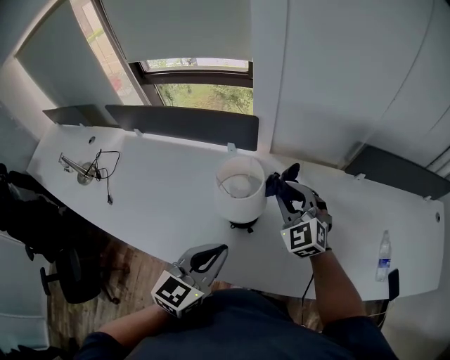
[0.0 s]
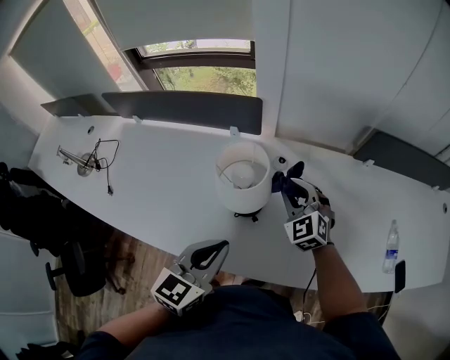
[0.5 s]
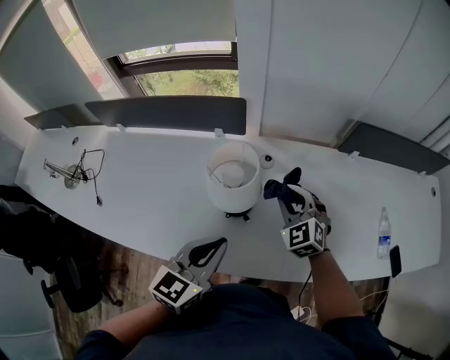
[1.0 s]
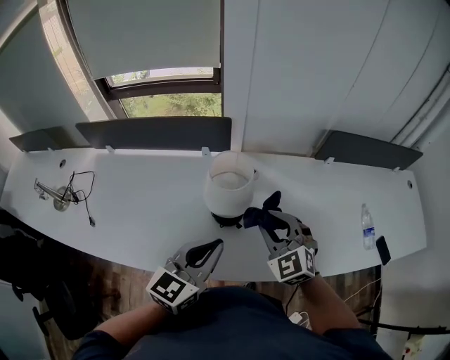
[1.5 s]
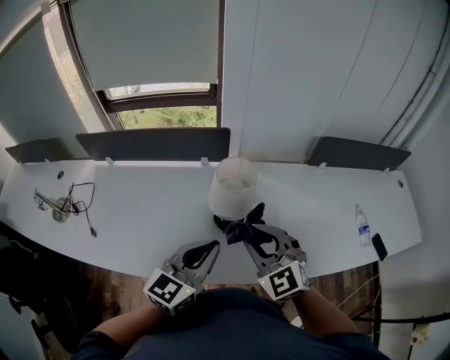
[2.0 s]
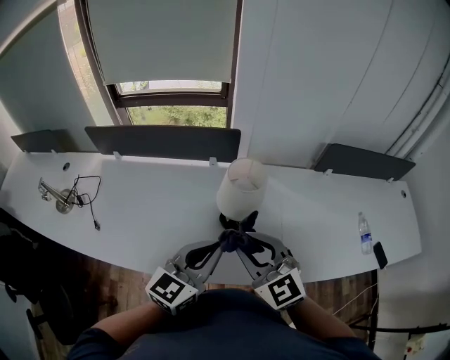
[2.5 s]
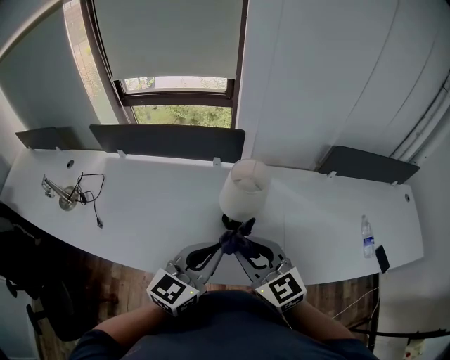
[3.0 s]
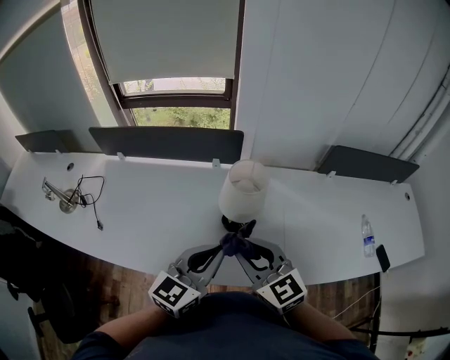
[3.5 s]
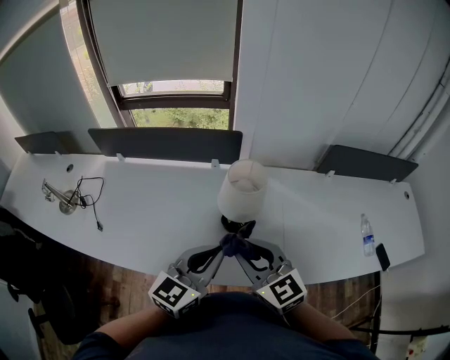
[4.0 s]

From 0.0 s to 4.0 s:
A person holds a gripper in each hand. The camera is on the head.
From 0.0 s to 2.0 s: The left gripper heads to the left, covering approximately 5 cm. Meanwhile the right gripper heads backward and to the left, covering approximately 20 cm.
From 2.0 s to 4.0 s: The right gripper moves some 5 cm, and swivels approximately 20 degrees.

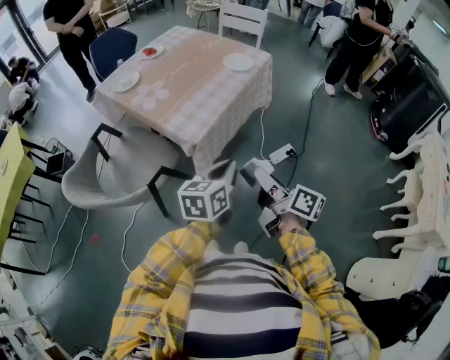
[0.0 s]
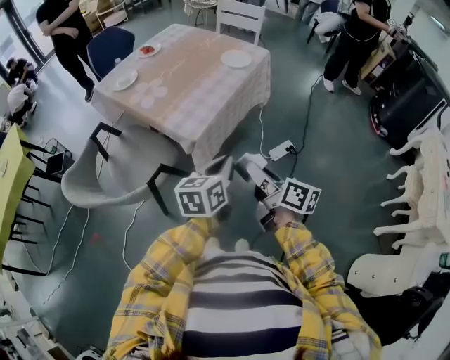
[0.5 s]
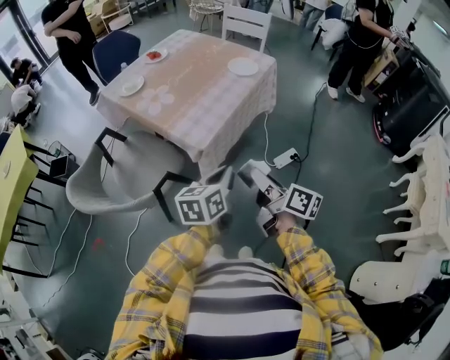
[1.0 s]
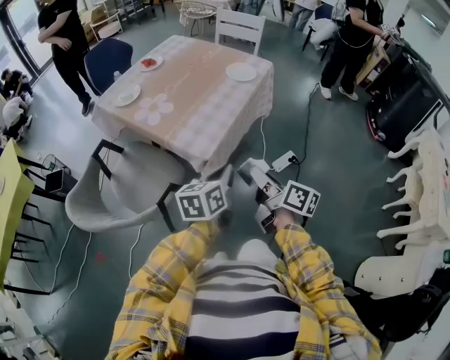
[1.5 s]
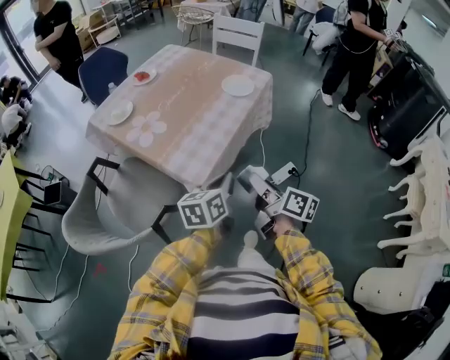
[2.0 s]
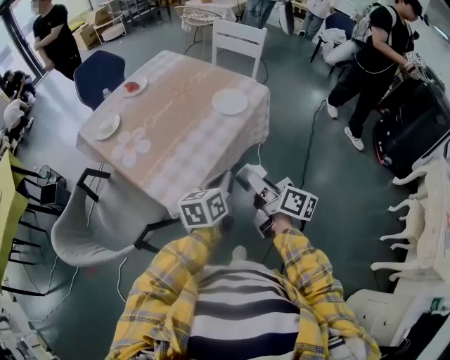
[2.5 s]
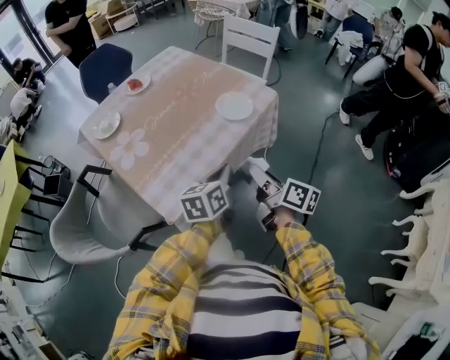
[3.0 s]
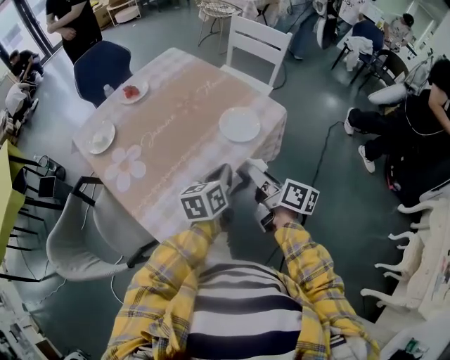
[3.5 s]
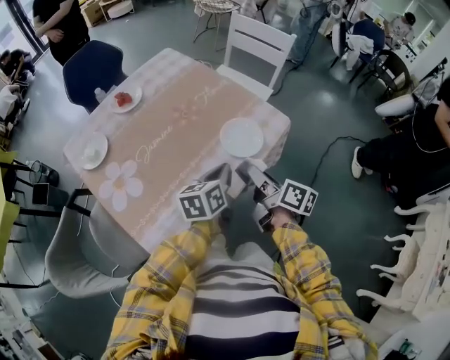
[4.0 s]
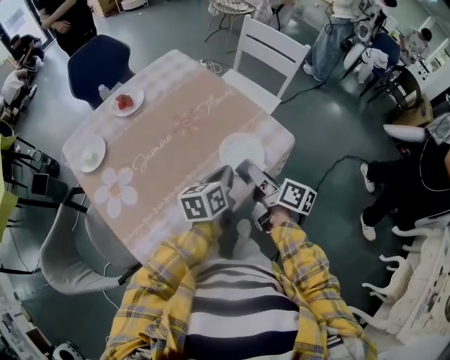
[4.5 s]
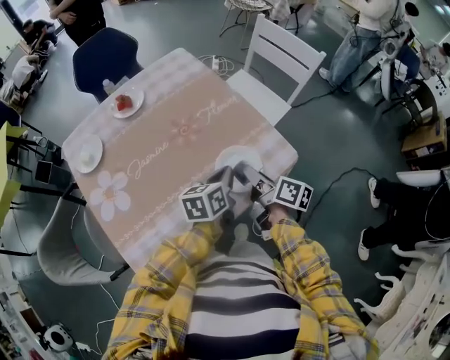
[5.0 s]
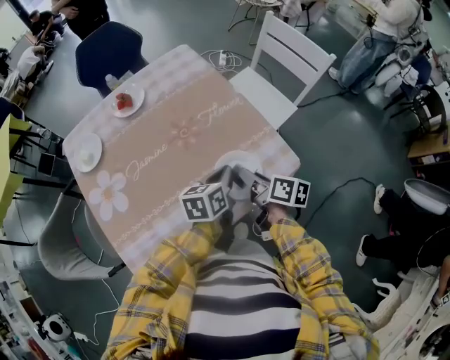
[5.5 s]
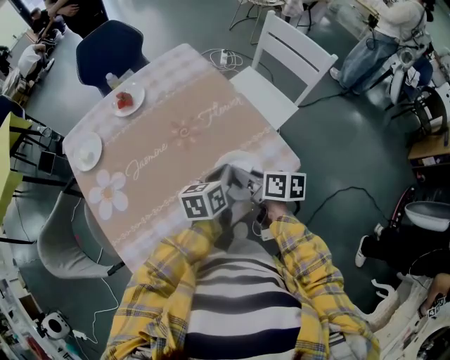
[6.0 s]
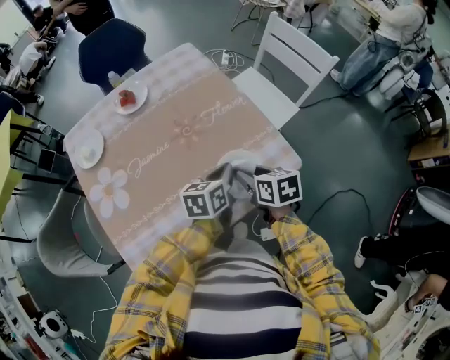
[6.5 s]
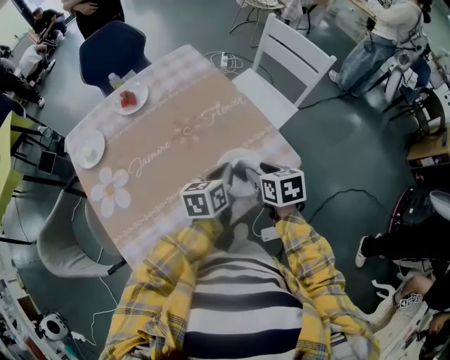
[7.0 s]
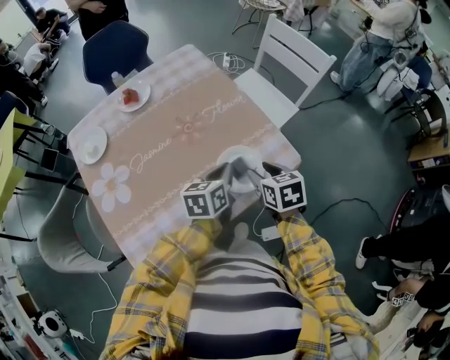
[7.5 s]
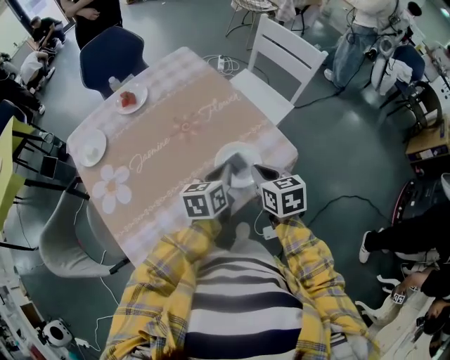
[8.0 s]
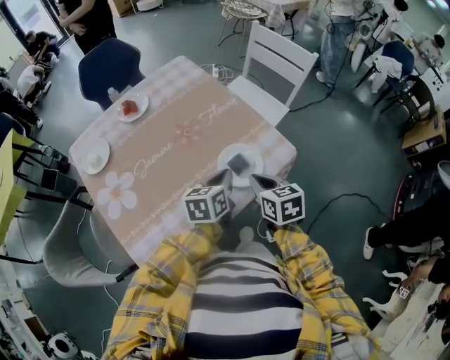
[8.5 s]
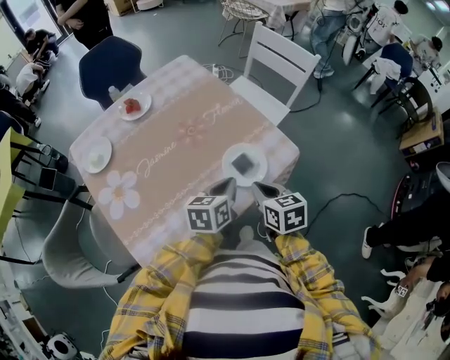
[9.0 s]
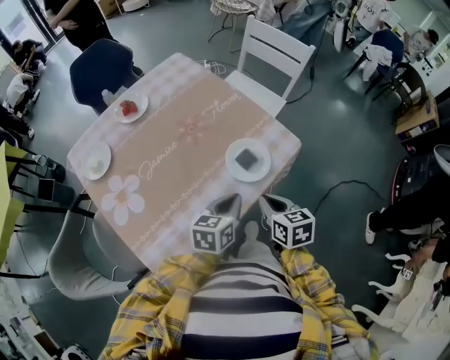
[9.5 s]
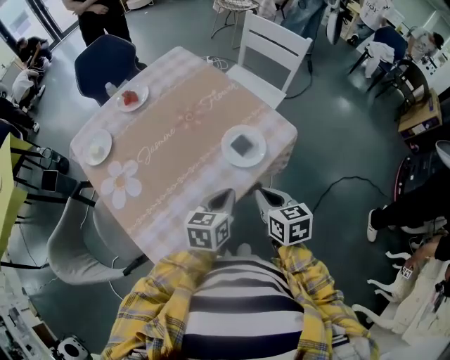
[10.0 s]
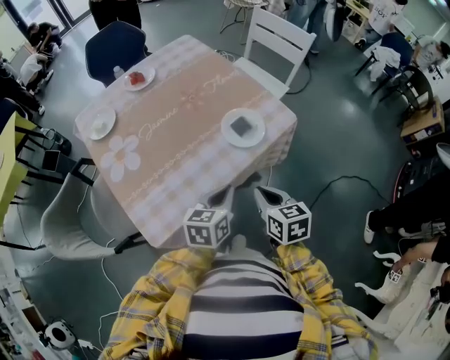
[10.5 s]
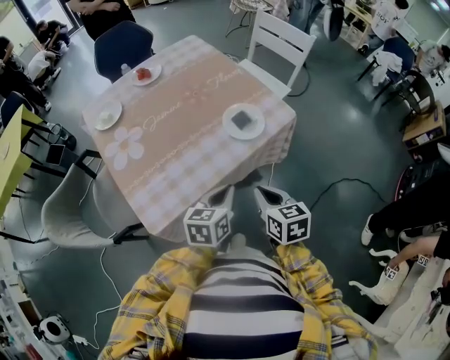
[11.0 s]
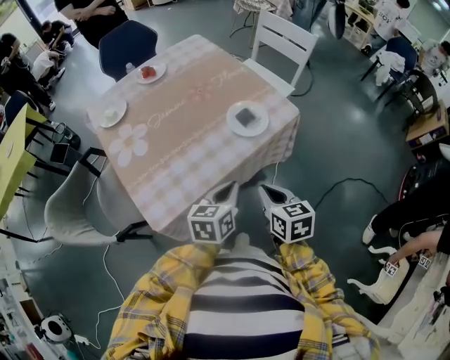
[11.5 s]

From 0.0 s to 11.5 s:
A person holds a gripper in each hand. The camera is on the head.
From 0.0 s to 2.0 s: The two grippers go some 15 cm forward.
From 2.0 s to 4.0 s: The two grippers go about 35 cm forward.
From 4.0 s to 6.0 s: The left gripper travels forward and to the right by approximately 15 cm. The right gripper shifts about 15 cm forward, and swivels approximately 30 degrees.
From 6.0 s to 7.5 s: The right gripper turns by about 40 degrees, and opens up.
From 7.5 s to 9.5 s: Both grippers move backward, approximately 15 cm. The right gripper closes.
From 9.5 s to 11.5 s: The grippers both shift backward by roughly 10 cm.

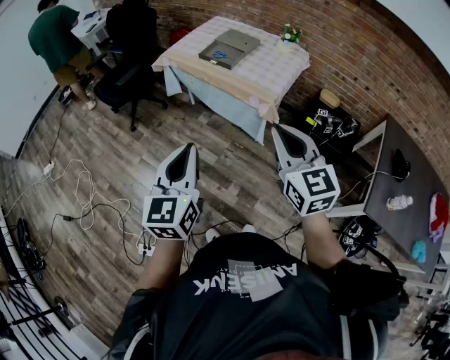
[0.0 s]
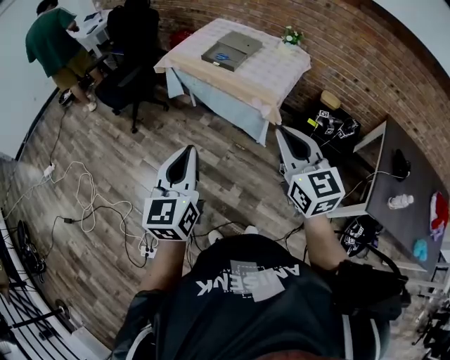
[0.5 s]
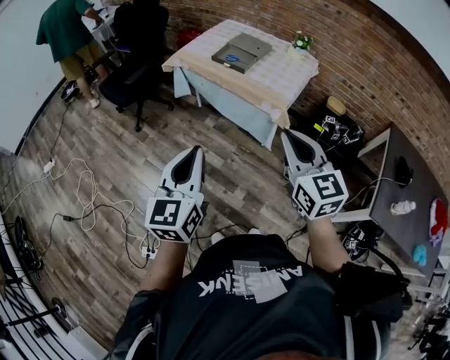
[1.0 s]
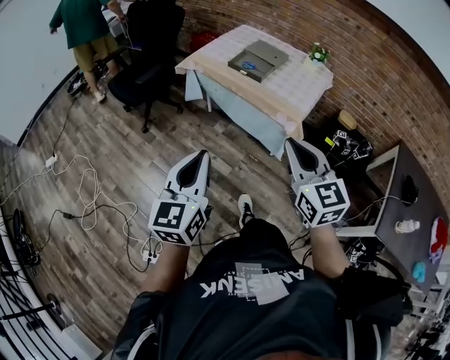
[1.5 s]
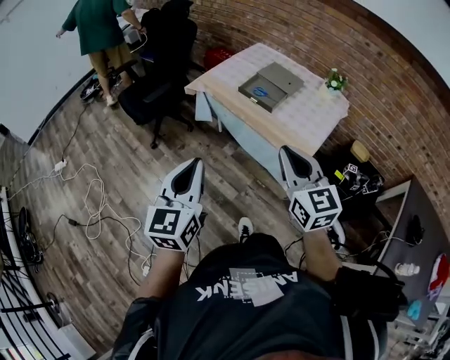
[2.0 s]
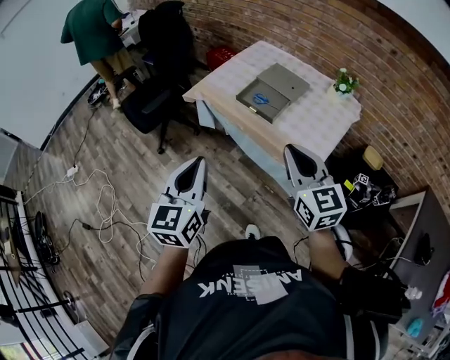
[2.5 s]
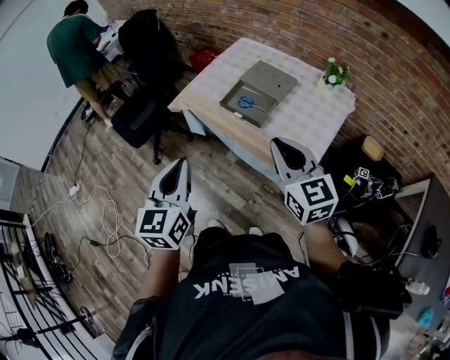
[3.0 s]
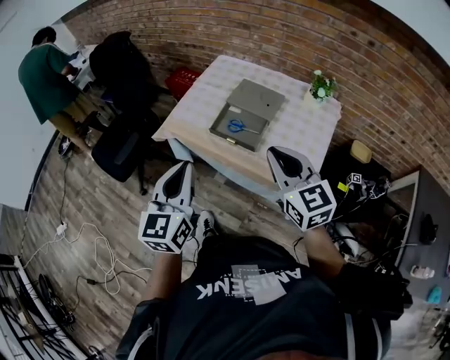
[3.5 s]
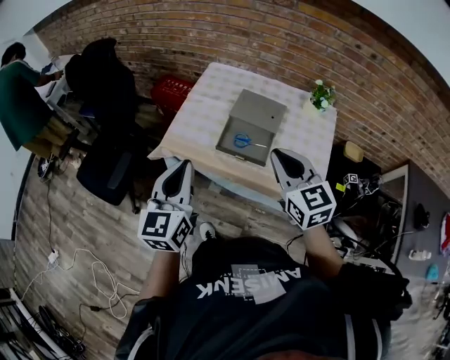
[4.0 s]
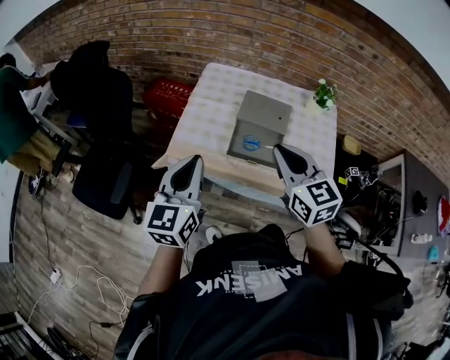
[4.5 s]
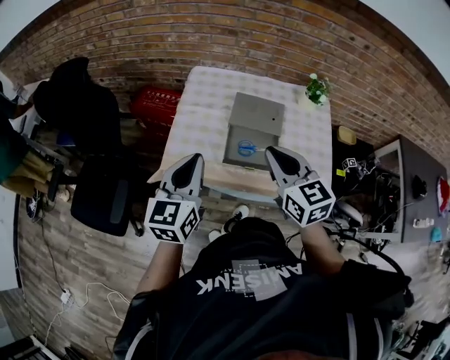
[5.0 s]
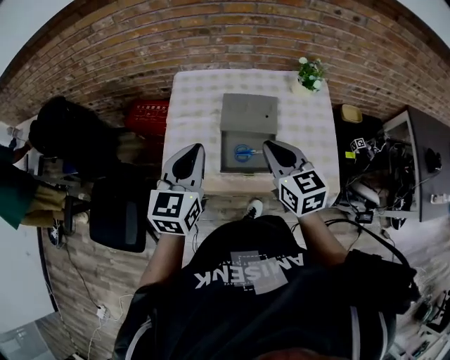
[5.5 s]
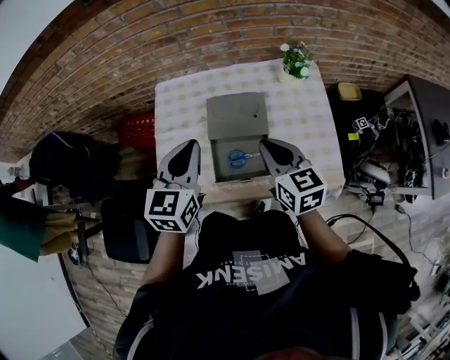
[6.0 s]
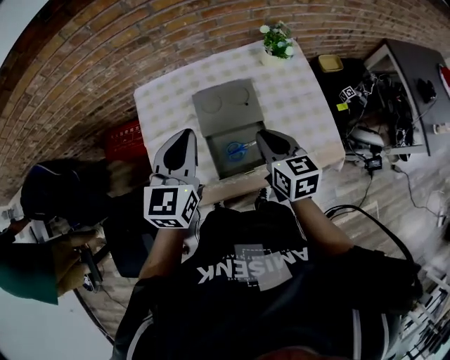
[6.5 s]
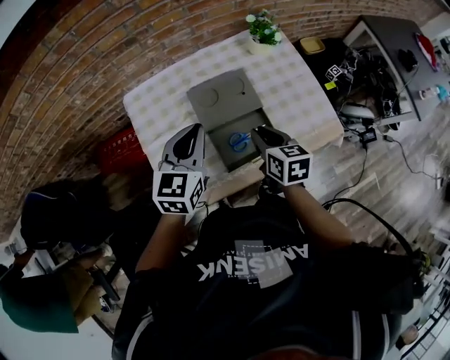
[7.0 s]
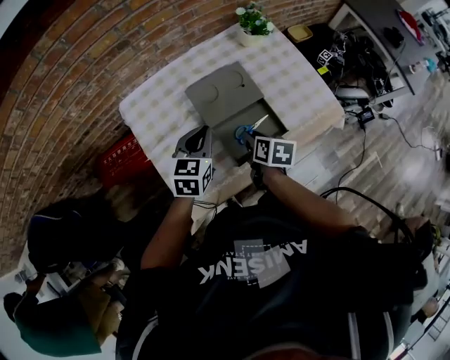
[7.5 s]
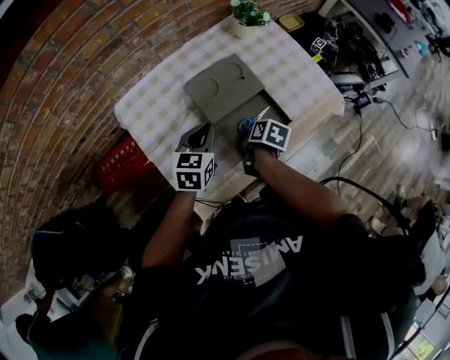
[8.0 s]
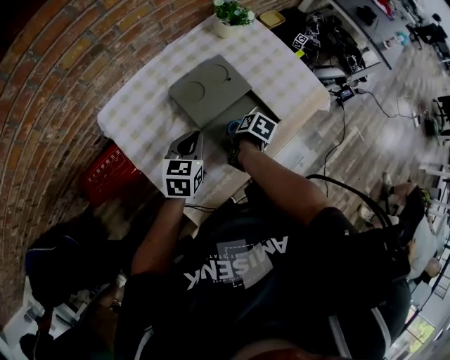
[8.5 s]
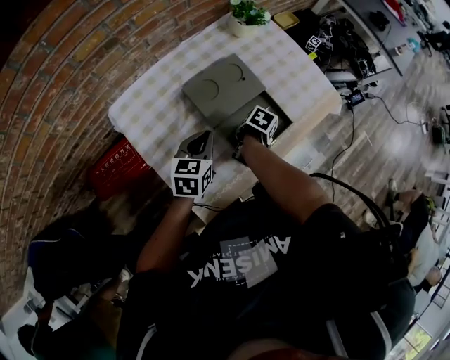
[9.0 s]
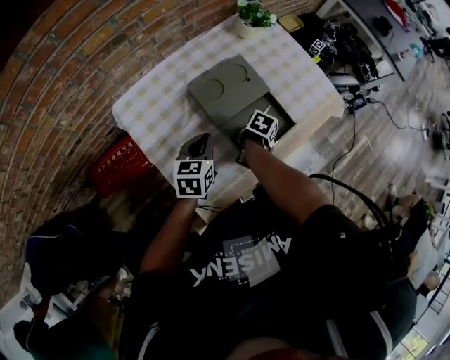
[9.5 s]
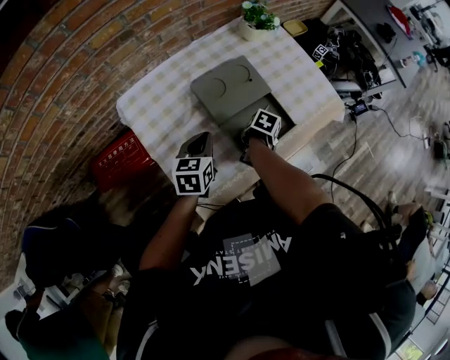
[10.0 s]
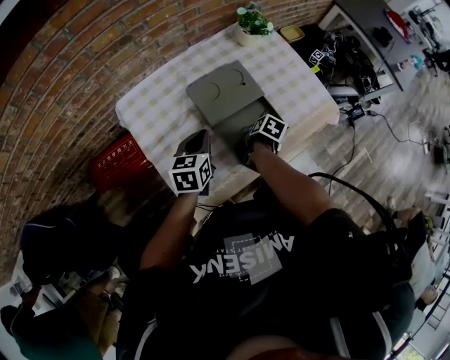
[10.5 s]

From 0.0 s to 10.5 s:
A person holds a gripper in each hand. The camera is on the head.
From 0.0 s to 2.0 s: The two grippers go some 25 cm forward and to the left.
From 2.0 s to 4.0 s: The grippers both shift forward by about 40 cm.
From 4.0 s to 6.5 s: The right gripper moves about 25 cm, and changes its angle by some 50 degrees, while the left gripper ends up roughly 35 cm from where it was, and turns by roughly 40 degrees.
From 6.5 s to 8.5 s: Both grippers move downward, some 25 cm. The left gripper rotates some 40 degrees. Meanwhile the right gripper rotates around the line of its fingers by approximately 70 degrees, clockwise from behind, and opens.
From 8.5 s to 10.5 s: The right gripper closes its fingers.

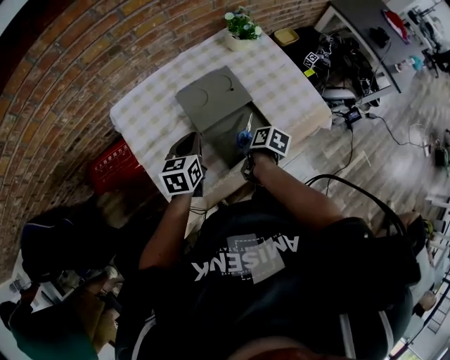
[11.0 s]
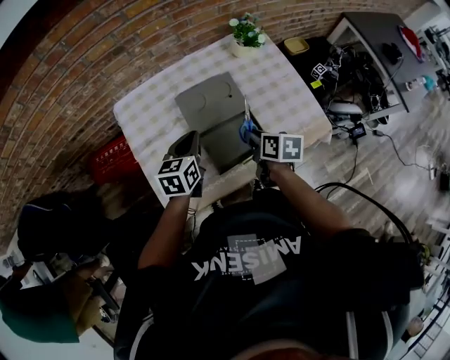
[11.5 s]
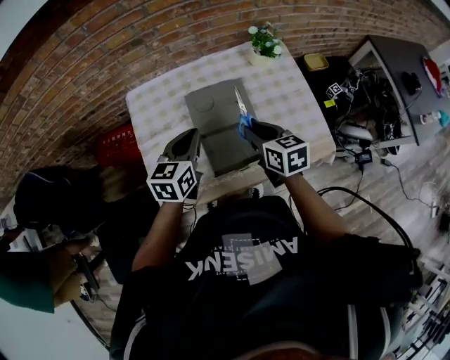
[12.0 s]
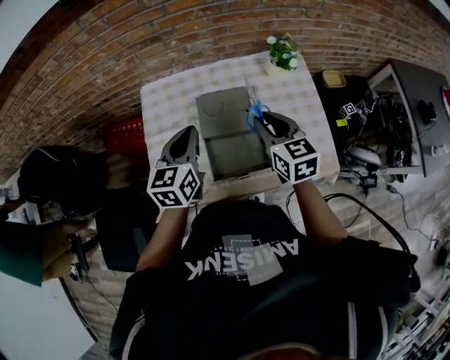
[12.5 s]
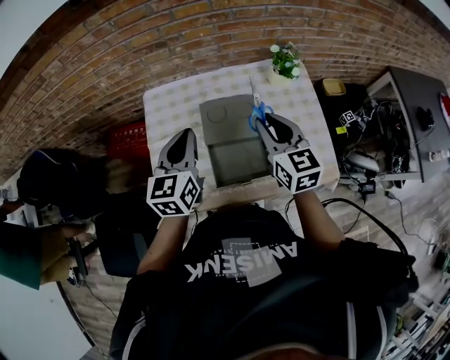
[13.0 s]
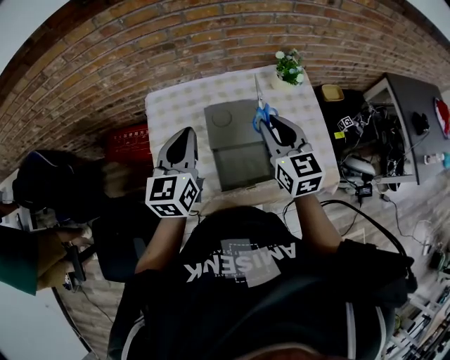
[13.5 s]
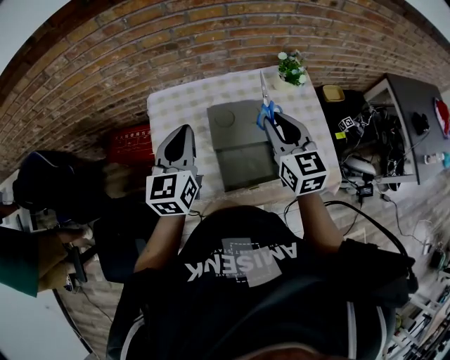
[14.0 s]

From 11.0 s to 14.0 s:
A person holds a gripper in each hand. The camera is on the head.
From 11.0 s to 12.5 s: The right gripper shifts about 25 cm upward and forward, and rotates around the line of its fingers by about 70 degrees, counterclockwise from behind. Meanwhile the left gripper moves upward, approximately 15 cm, and turns by approximately 30 degrees.
From 12.5 s to 14.0 s: The right gripper goes roughly 5 cm upward, while the left gripper heads to the left and upward, covering about 10 cm.
